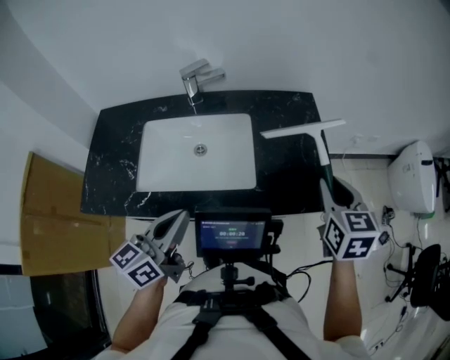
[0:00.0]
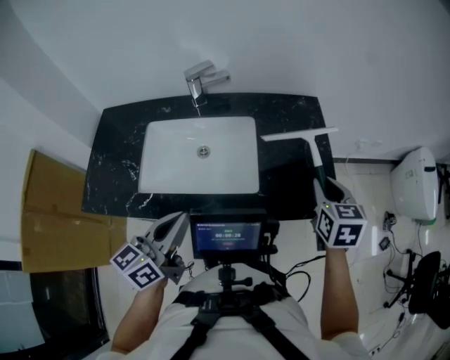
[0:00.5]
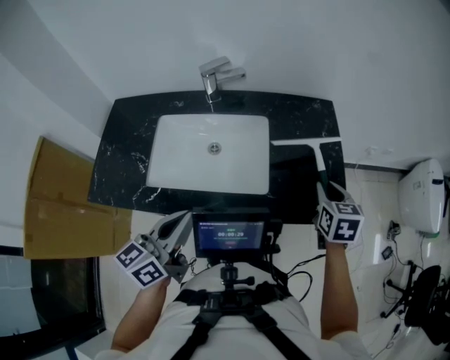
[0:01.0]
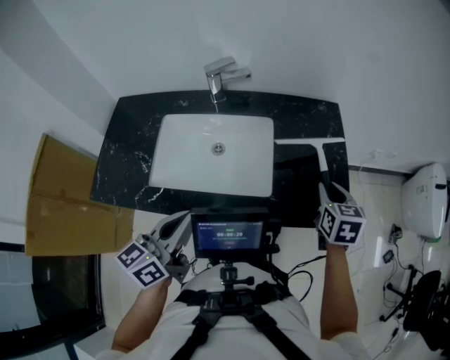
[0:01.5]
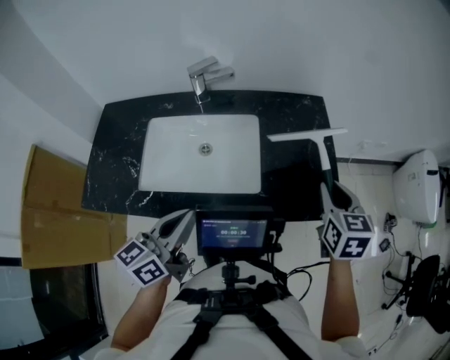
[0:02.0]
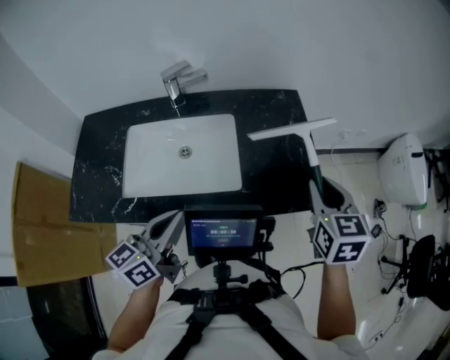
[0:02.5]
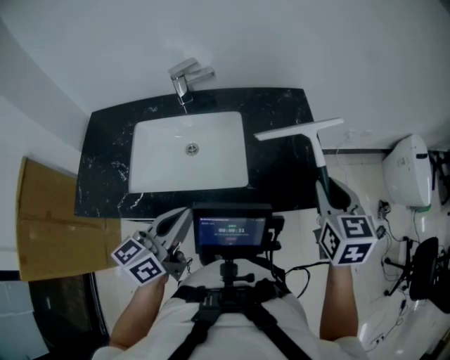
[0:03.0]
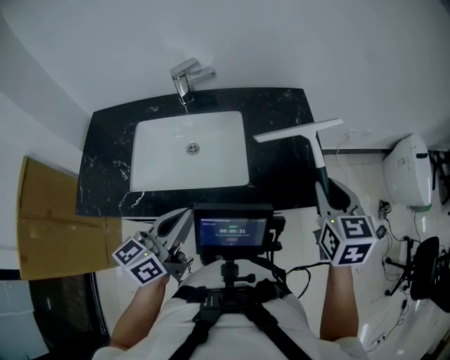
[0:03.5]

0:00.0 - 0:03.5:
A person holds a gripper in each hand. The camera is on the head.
0:00.0 - 0:02.0: The right gripper reaches some 10 cm downward, then returns.
0:02.0 - 0:03.5: The right gripper moves some 5 cm.

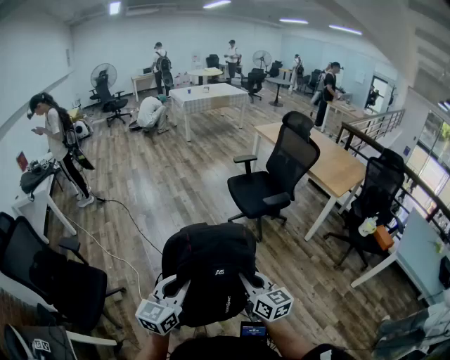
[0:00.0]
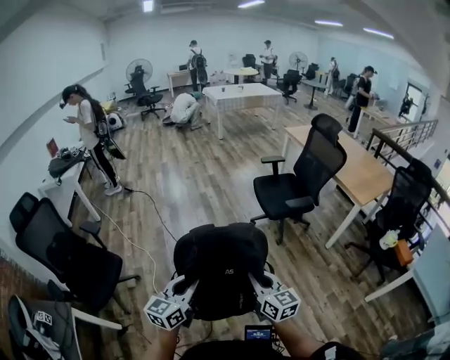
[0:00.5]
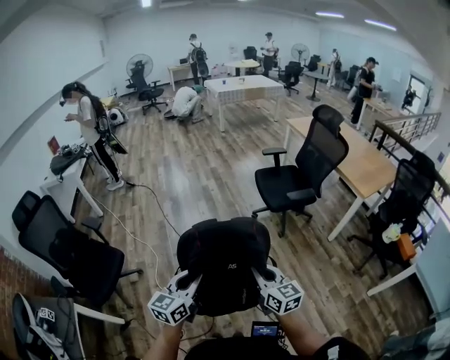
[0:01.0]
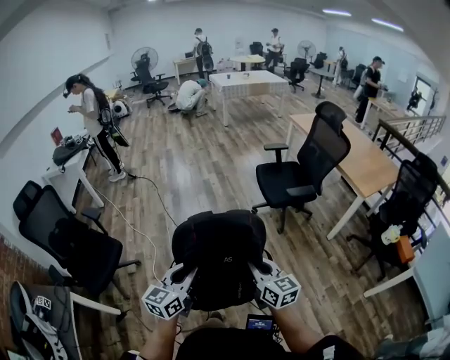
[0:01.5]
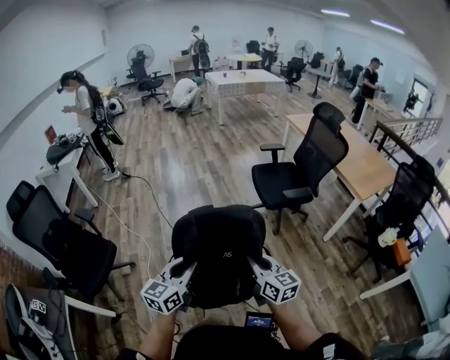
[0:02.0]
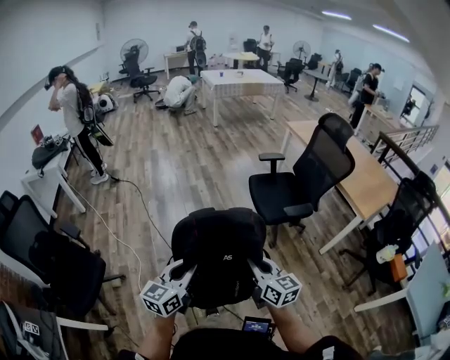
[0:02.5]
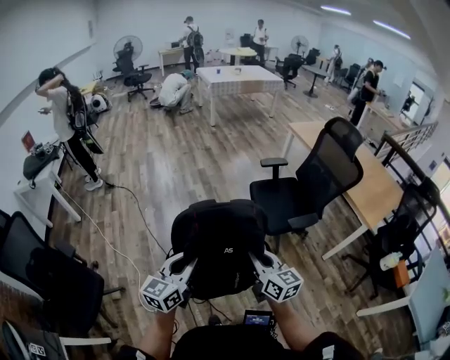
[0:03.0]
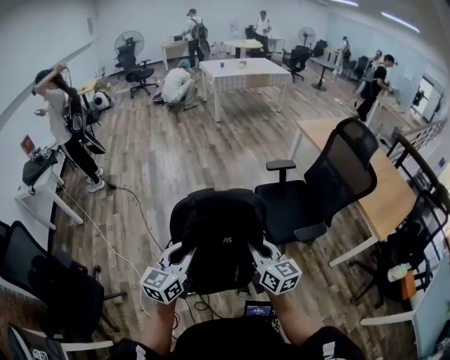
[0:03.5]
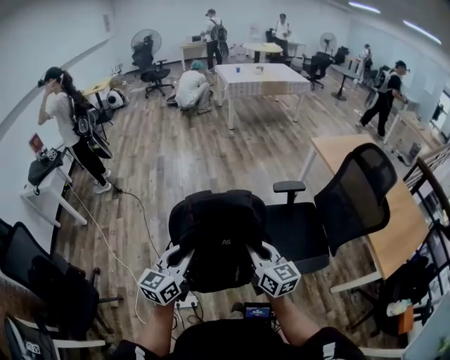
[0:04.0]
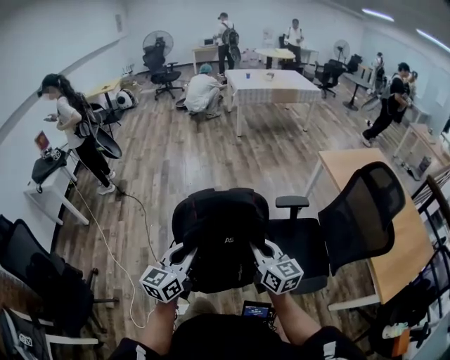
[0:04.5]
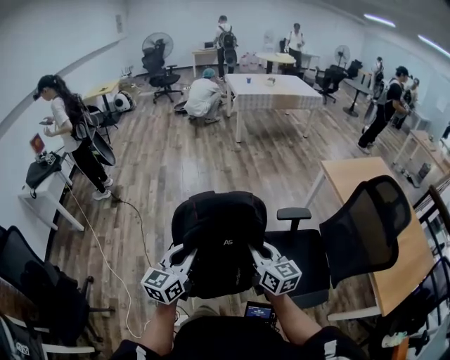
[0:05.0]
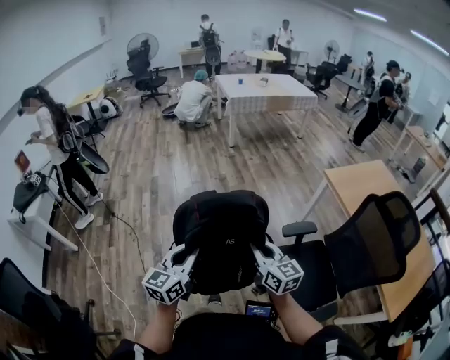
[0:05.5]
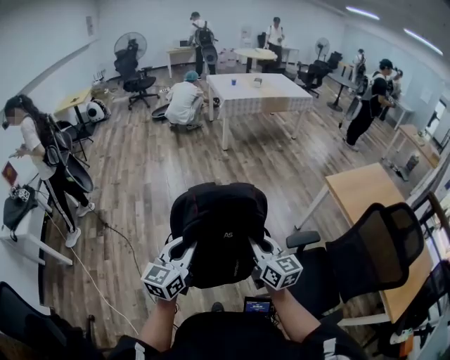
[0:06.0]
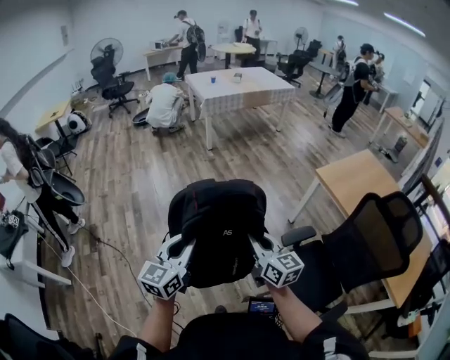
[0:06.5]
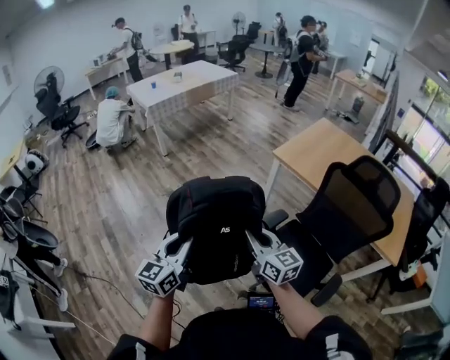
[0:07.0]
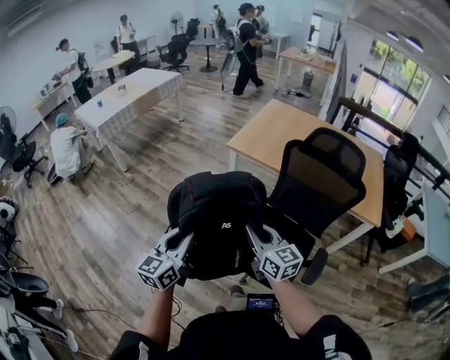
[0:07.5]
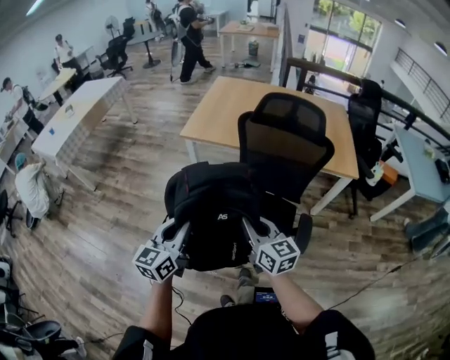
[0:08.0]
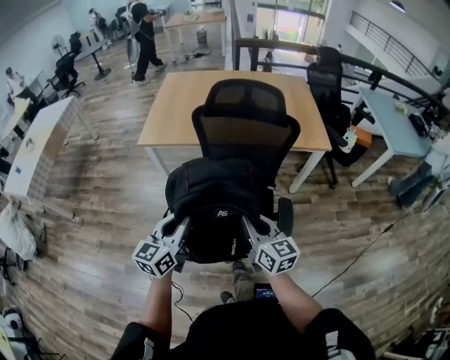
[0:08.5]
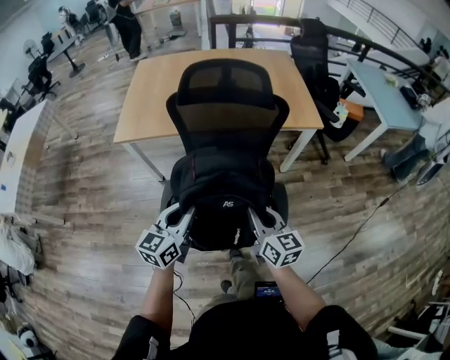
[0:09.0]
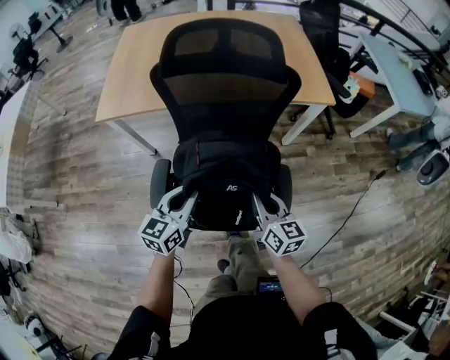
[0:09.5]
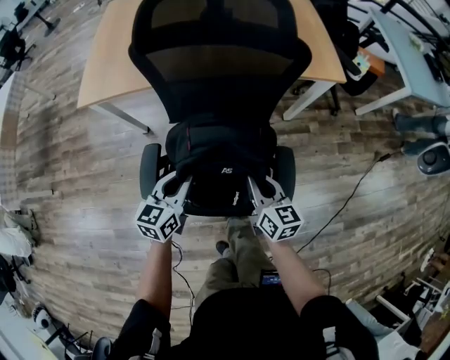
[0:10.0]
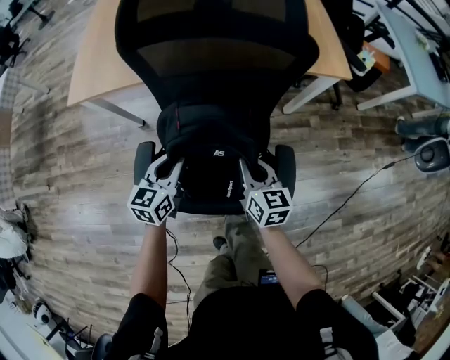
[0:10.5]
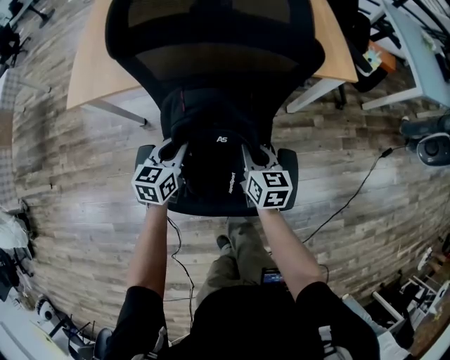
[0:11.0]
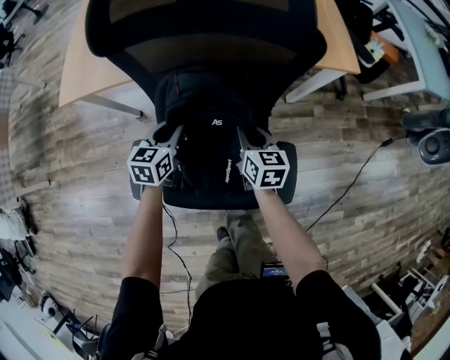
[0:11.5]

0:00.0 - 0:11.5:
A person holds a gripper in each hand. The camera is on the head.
0:00.0 - 0:02.0: The grippers both shift to the right by approximately 5 cm.
0:02.0 - 0:04.0: The pair of grippers is taken forward, about 60 cm.
0:04.0 - 0:06.0: The pair of grippers is taken forward, roughly 40 cm.
0:06.0 - 0:07.5: The left gripper shifts by some 30 cm, and swivels approximately 40 degrees. The right gripper moves some 25 cm, and swivels roughly 40 degrees.
0:07.5 - 0:09.5: The left gripper ends up some 40 cm from where it was, and rotates about 40 degrees. The right gripper ends up about 35 cm from where it was, and rotates about 50 degrees.
0:09.5 - 0:11.5: The grippers both shift forward and downward by approximately 25 cm.

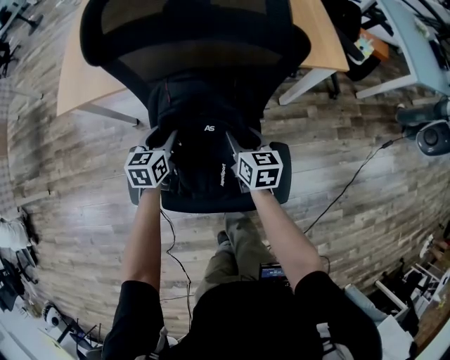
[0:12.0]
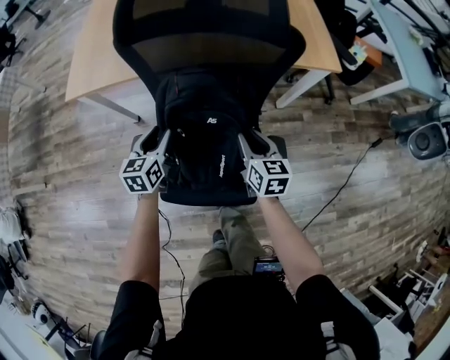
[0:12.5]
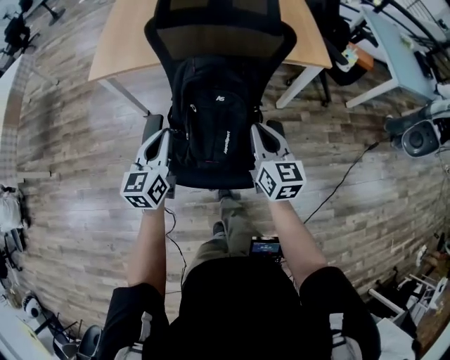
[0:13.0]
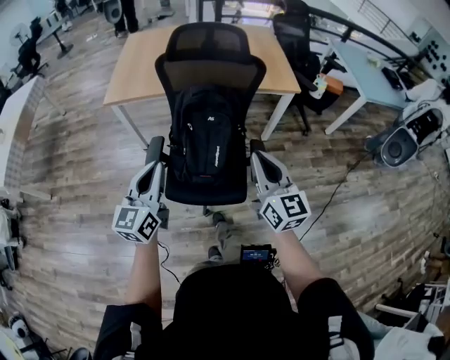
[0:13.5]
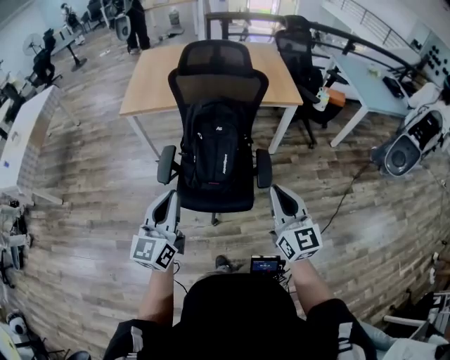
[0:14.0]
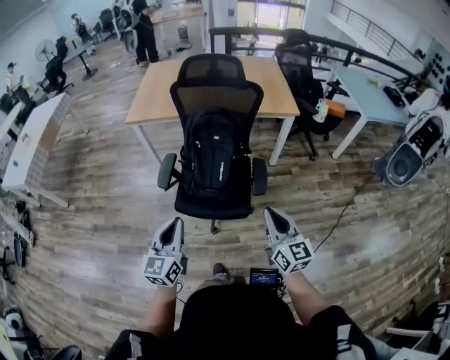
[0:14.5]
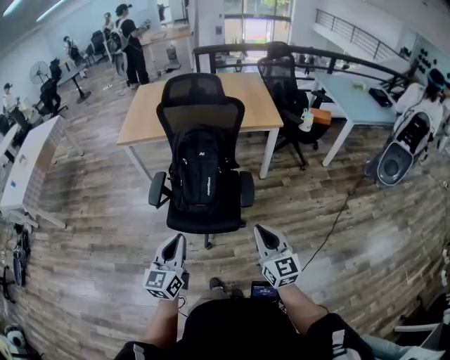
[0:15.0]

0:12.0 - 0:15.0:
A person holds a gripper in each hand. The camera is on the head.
0:12.0 - 0:13.5: The left gripper heads backward and upward, covering roughly 50 cm, tips its fingers upward by roughly 30 degrees, and closes up; the right gripper shifts roughly 50 cm upward and backward, points its fingers approximately 30 degrees further upward, and closes.
0:13.5 - 0:15.0: The grippers both shift backward and to the right by about 25 cm.

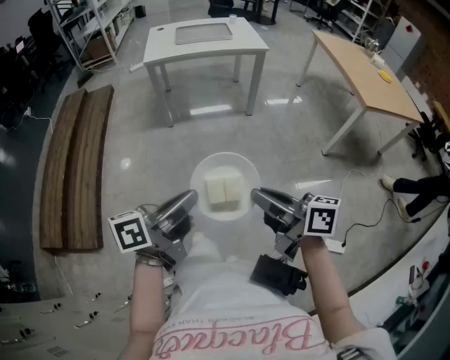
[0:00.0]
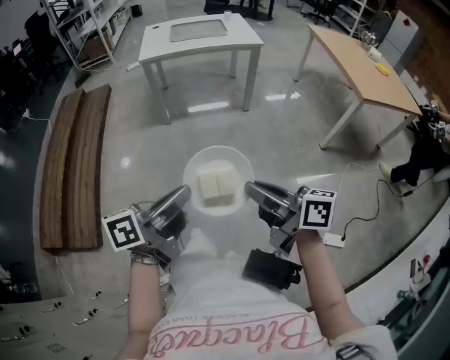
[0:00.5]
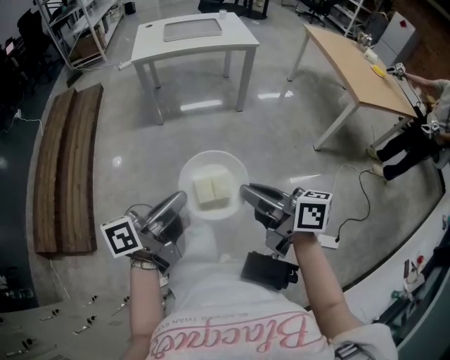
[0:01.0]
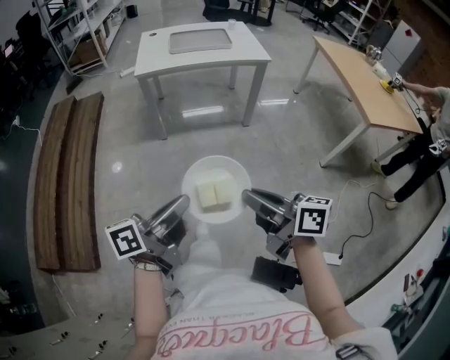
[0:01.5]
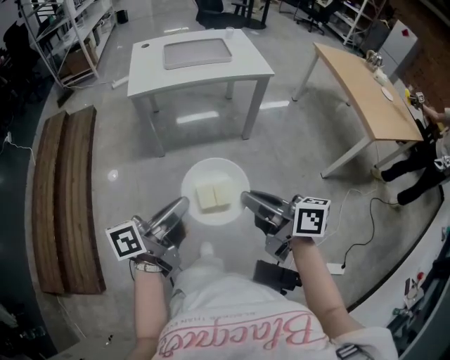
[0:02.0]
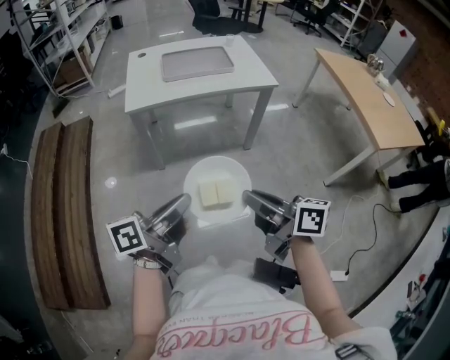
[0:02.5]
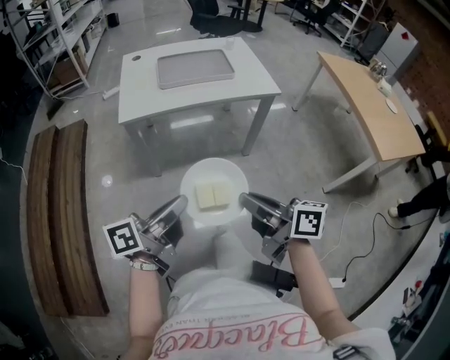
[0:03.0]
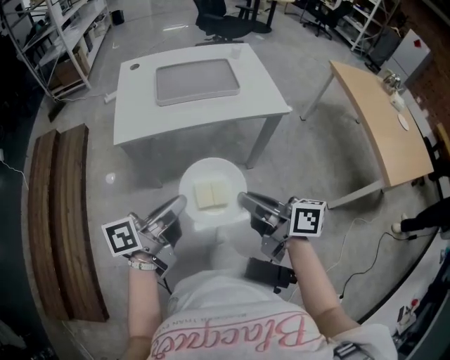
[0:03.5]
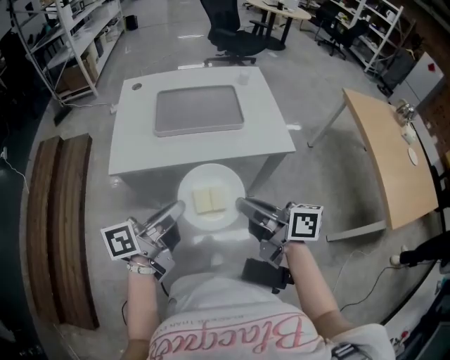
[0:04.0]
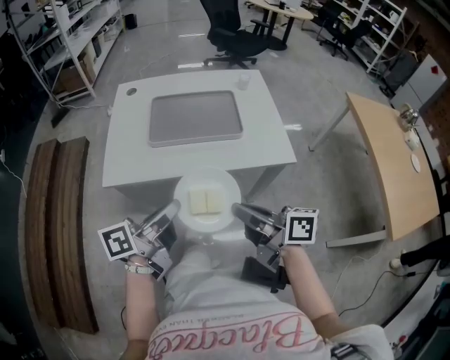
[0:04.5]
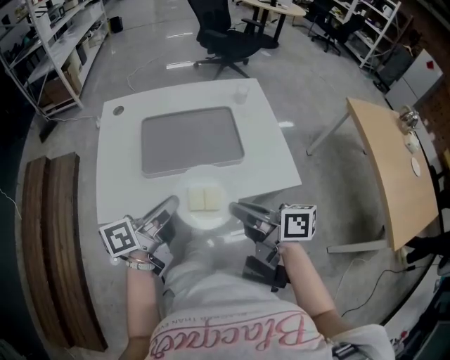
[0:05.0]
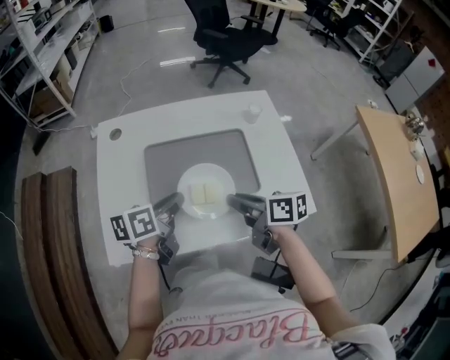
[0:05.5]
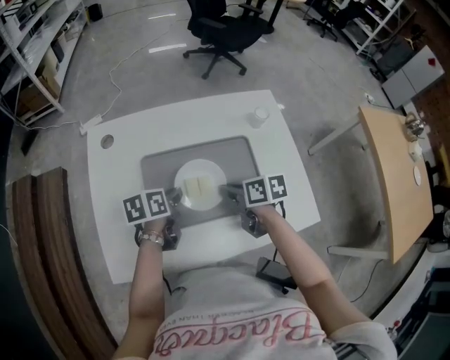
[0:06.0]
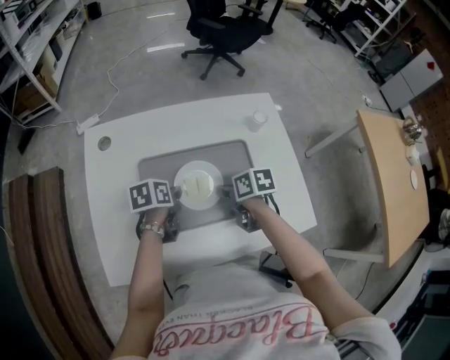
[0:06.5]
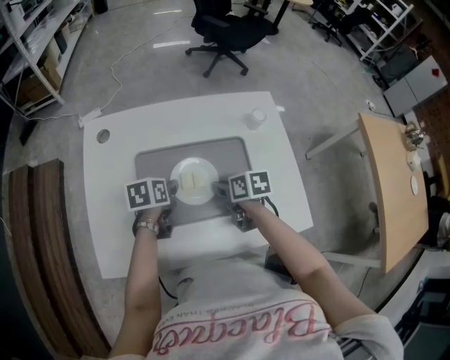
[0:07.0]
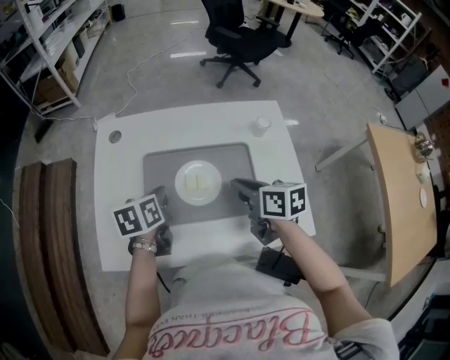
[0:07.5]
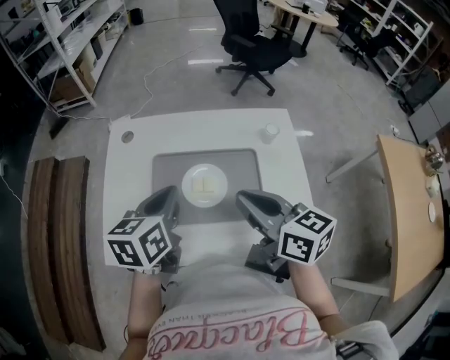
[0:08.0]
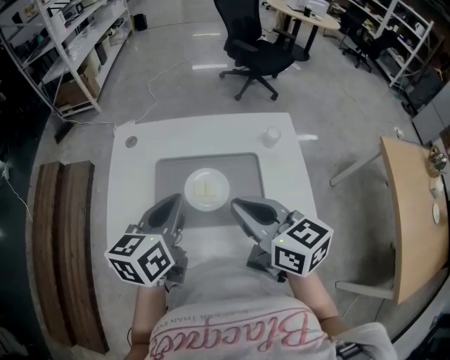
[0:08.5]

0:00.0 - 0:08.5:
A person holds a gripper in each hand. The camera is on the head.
0:00.0 - 0:02.0: The grippers both shift forward by about 20 cm.
0:02.0 - 0:04.0: Both grippers move forward, about 35 cm.
0:04.0 - 0:06.5: Both grippers move forward and downward, approximately 40 cm. The left gripper points its fingers roughly 50 degrees further downward; the right gripper tilts its fingers approximately 50 degrees downward.
0:06.5 - 0:08.5: The two grippers go some 25 cm upward. The right gripper angles its fingers upward, by some 30 degrees; the left gripper angles its fingers upward, by approximately 30 degrees, and opens and closes again.
